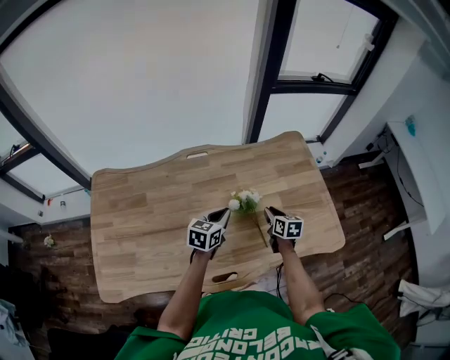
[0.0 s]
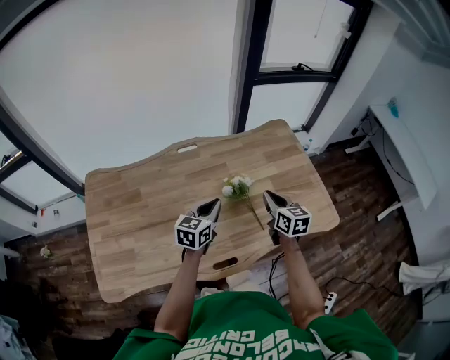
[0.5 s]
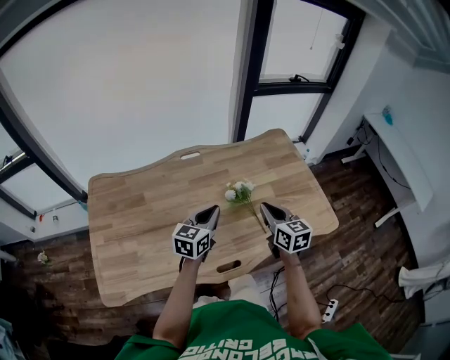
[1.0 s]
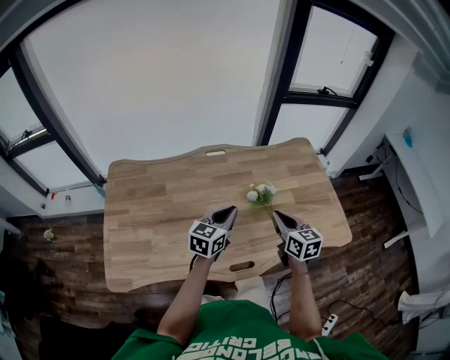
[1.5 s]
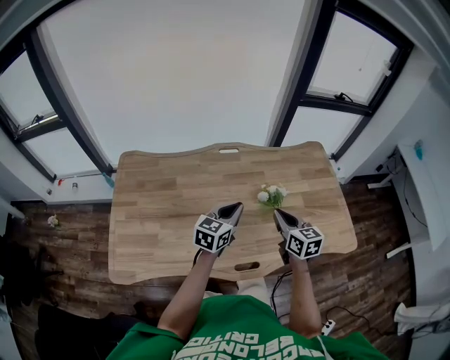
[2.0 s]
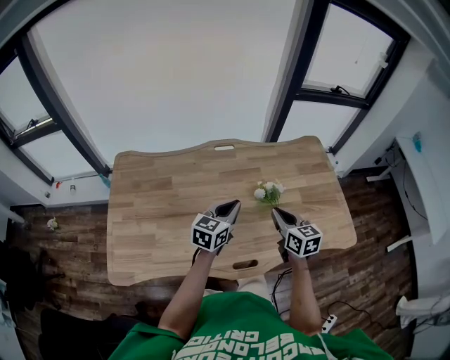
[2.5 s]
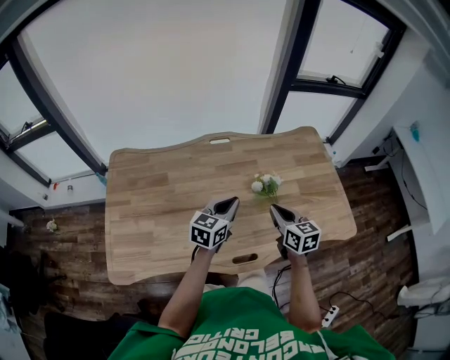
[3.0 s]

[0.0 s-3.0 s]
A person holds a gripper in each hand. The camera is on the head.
0.0 to 1.5 s: The left gripper heads backward, upward and to the left, covering about 15 cm; the right gripper shifts approximately 25 cm upward, backward and to the left, and swivels some 20 degrees.
1.5 to 3.0 s: There are only small adjustments of the grippers.

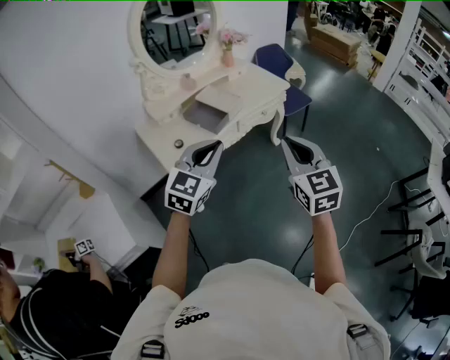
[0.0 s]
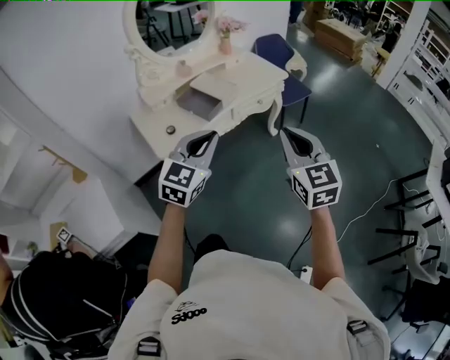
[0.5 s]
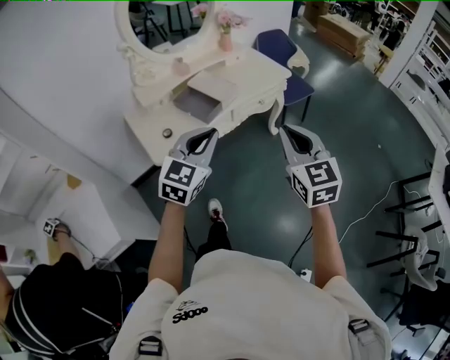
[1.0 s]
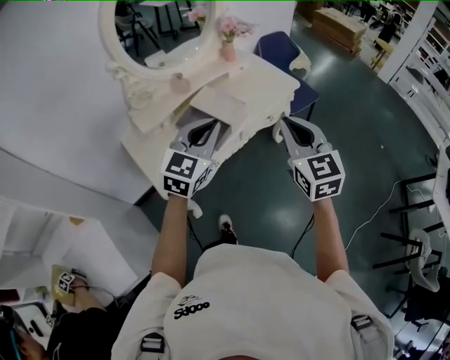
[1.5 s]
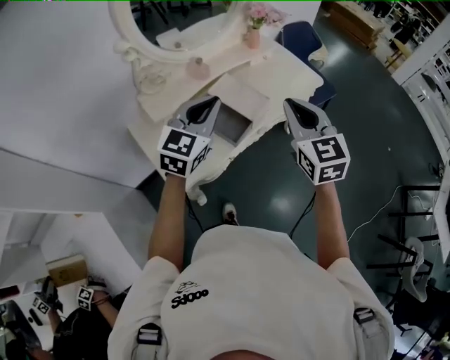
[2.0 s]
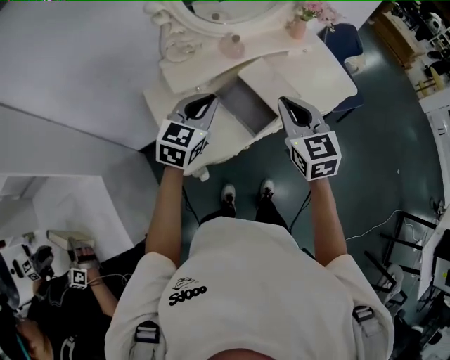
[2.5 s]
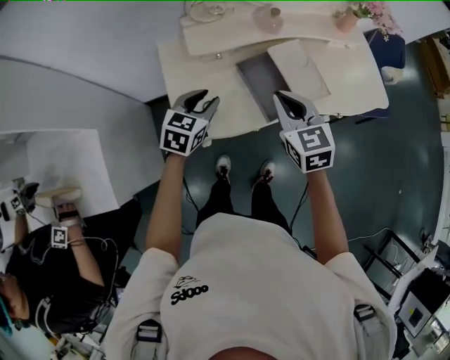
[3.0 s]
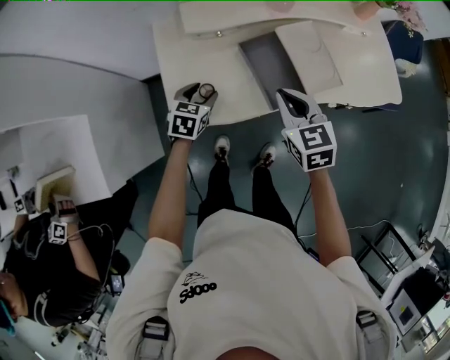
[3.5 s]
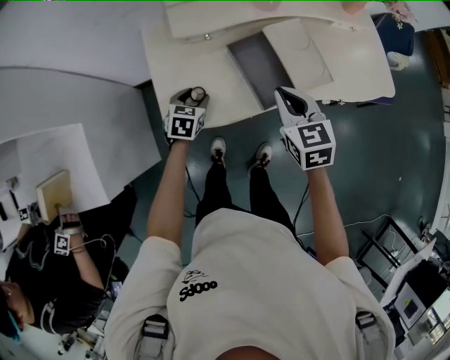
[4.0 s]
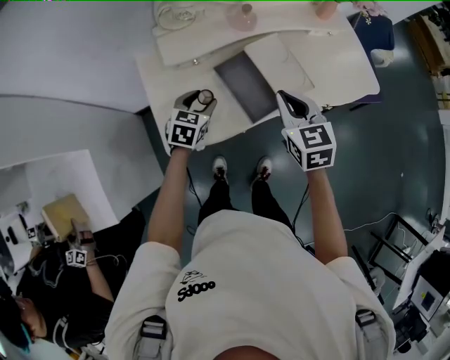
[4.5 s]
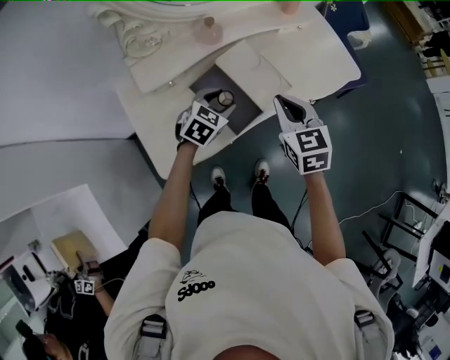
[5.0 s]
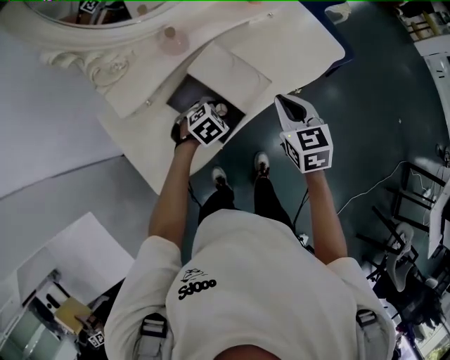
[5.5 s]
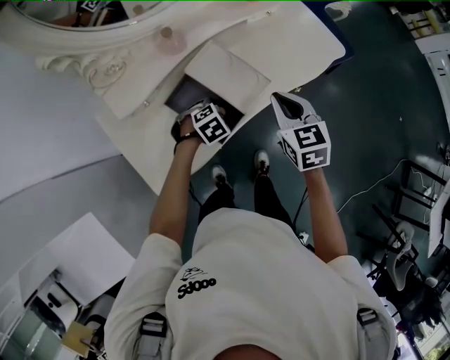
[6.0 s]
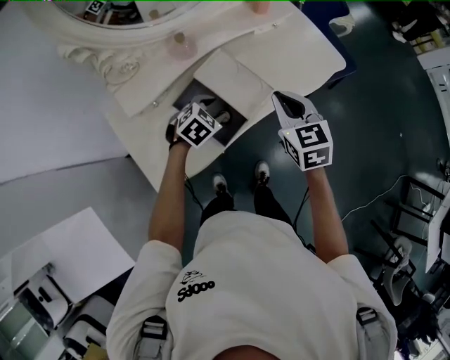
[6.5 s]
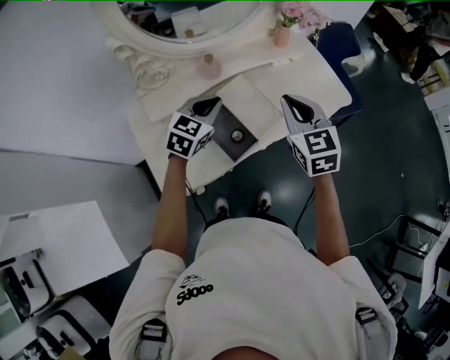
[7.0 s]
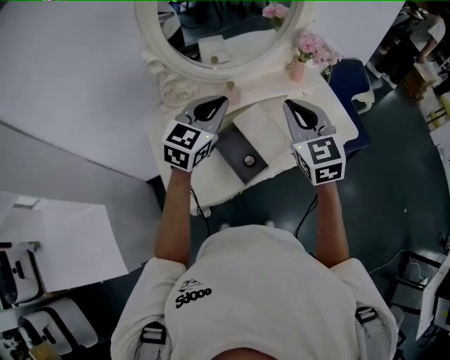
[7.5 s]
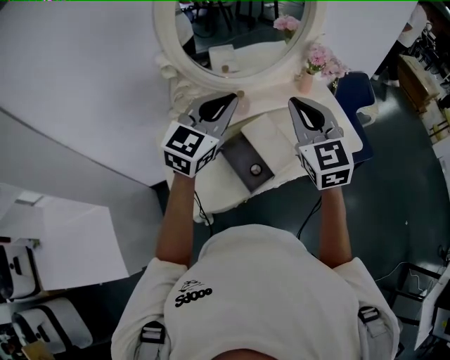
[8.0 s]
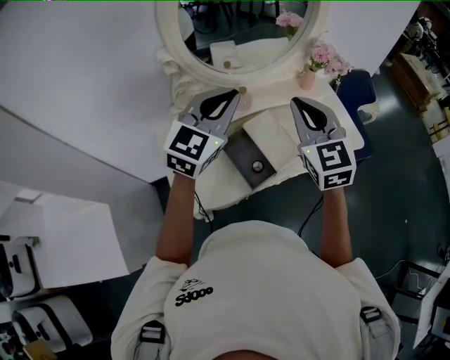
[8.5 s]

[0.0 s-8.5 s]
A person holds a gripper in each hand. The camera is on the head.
0.0 to 2.0 s: Both grippers travel together forward and to the left, some 35 cm.
2.0 to 4.0 s: The left gripper heads downward, covering some 35 cm, angles its fingers downward, by about 40 degrees, and opens. The right gripper travels downward by some 20 cm, and rotates roughly 40 degrees.
4.0 to 6.5 s: The left gripper swings up and down, some 10 cm each way, with 2 reversals, and rolls clockwise, seen from behind, by approximately 50 degrees, while the right gripper changes place by about 15 cm, and turns by about 20 degrees.
6.5 to 8.5 s: The left gripper is displaced upward by about 35 cm, tilts its fingers roughly 50 degrees upward, and closes up. Meanwhile the right gripper heads upward and to the left, covering about 20 cm, and turns by some 30 degrees.

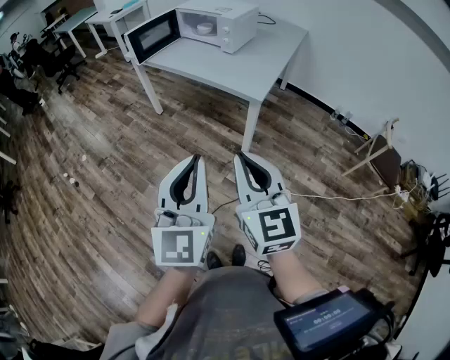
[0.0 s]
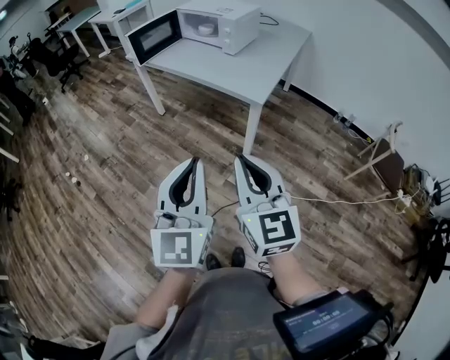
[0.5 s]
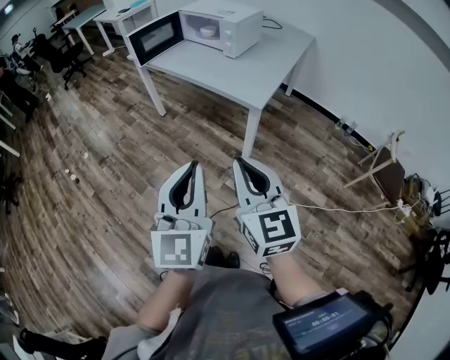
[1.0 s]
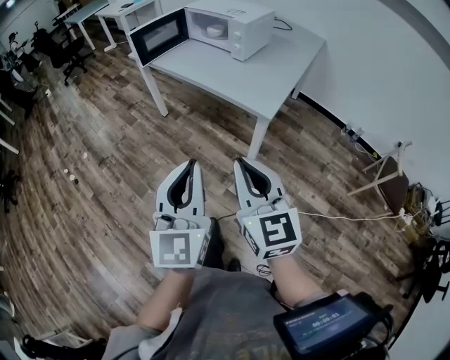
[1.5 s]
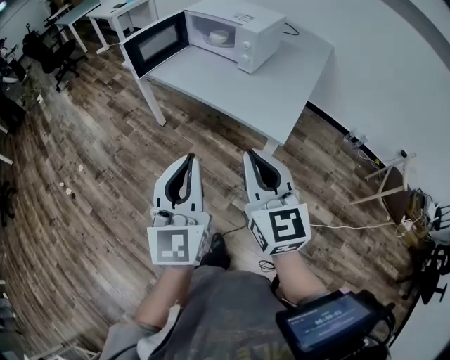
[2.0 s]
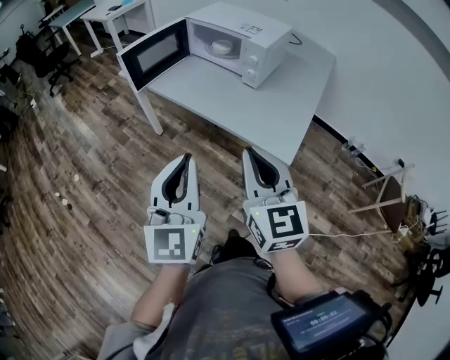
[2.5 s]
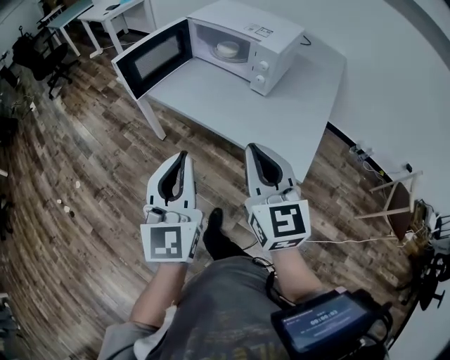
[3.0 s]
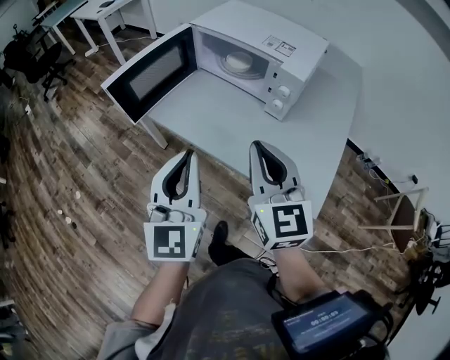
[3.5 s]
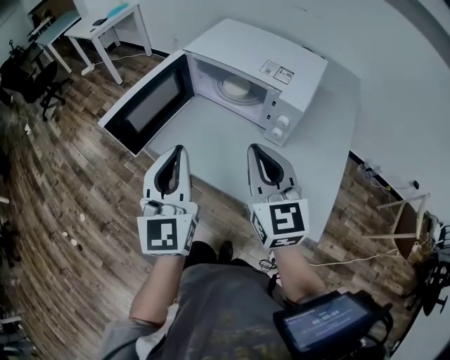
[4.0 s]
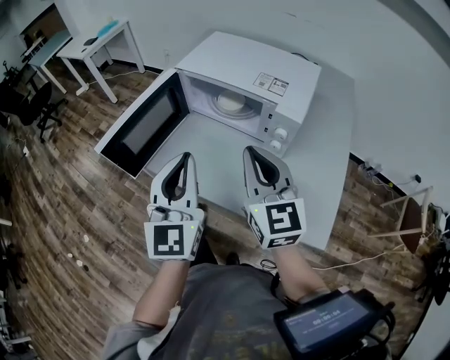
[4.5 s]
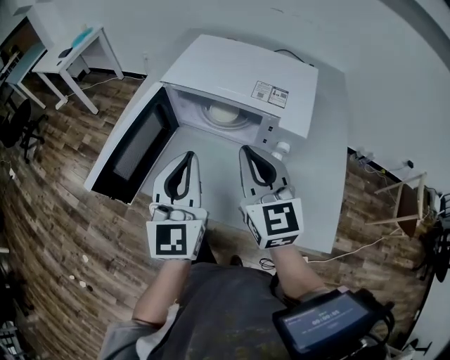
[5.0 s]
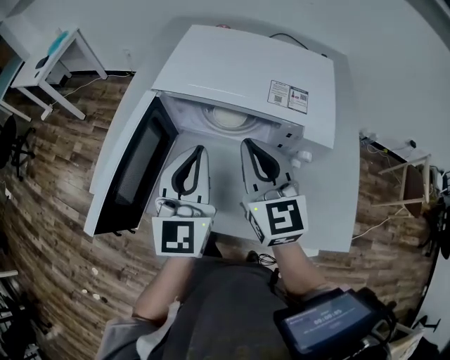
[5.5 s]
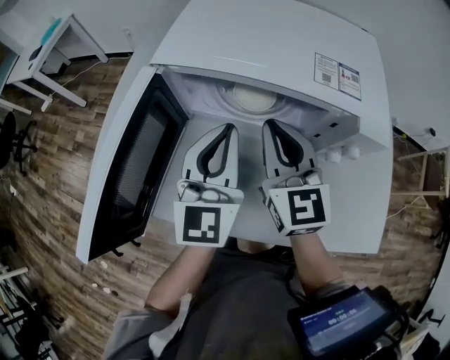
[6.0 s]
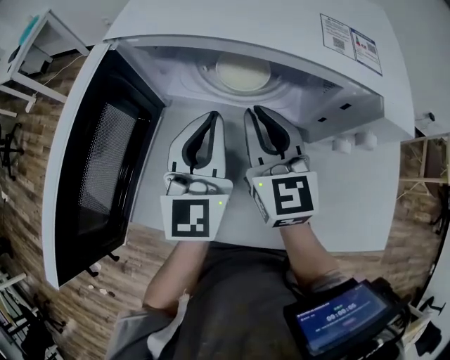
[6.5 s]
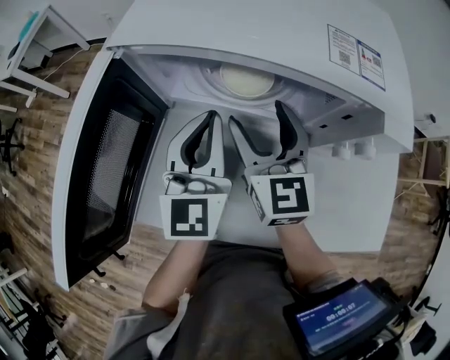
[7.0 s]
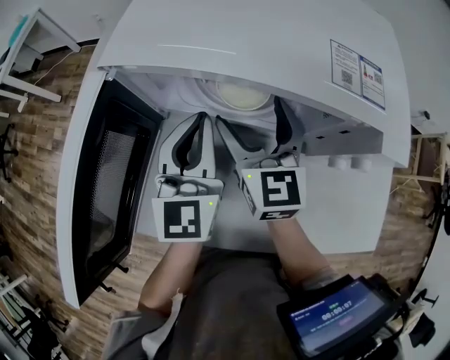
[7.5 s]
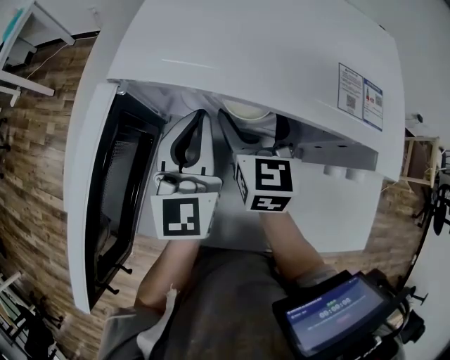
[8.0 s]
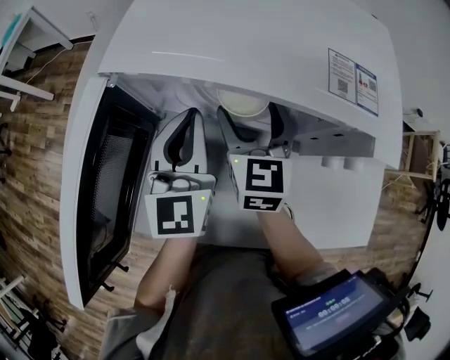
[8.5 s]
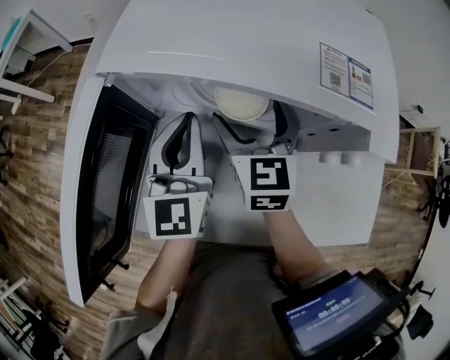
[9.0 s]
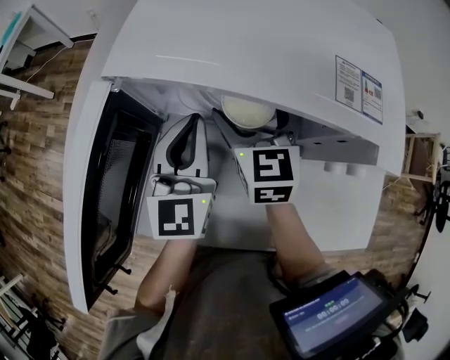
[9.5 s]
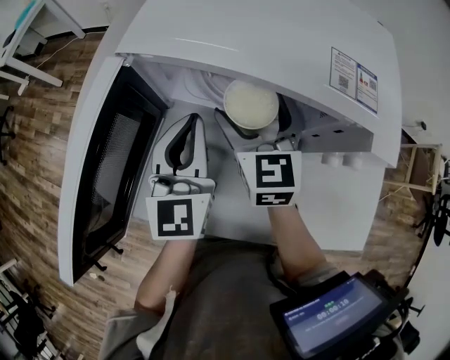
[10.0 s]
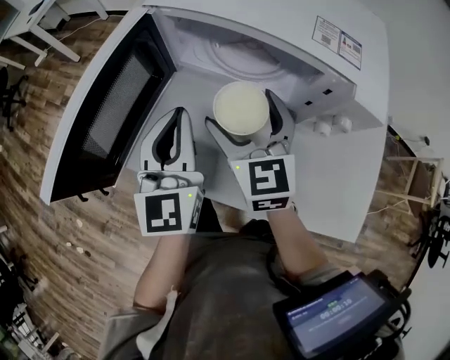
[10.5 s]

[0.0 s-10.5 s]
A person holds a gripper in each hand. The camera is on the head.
0.0 to 2.0 s: Both grippers move forward, about 25 cm.
2.0 to 4.0 s: The pair of grippers is taken forward, roughly 40 cm.
4.0 to 6.5 s: Both grippers travel together forward and downward, approximately 30 cm. The left gripper changes its angle by approximately 30 degrees.
6.5 to 8.5 s: The left gripper shifts by some 5 cm, while the right gripper shifts some 5 cm forward, and opens up.
8.5 to 10.5 s: The two grippers go some 10 cm backward. The right gripper turns by some 20 degrees.

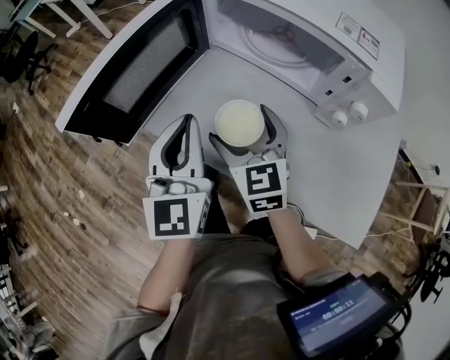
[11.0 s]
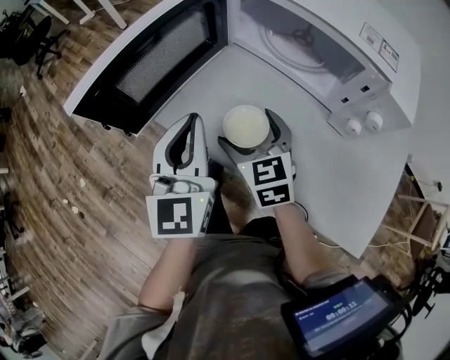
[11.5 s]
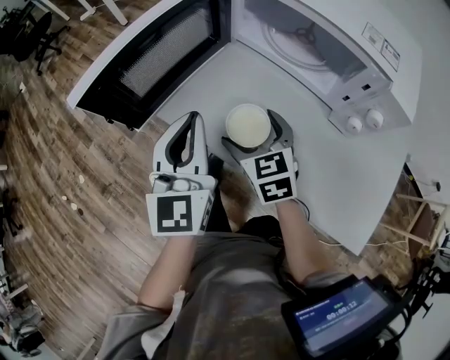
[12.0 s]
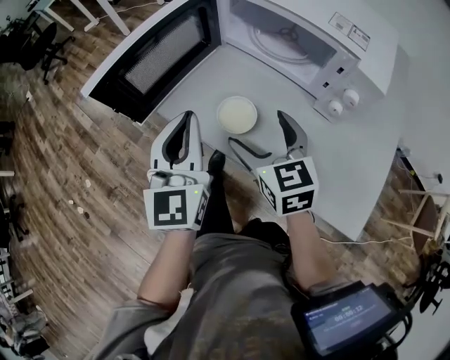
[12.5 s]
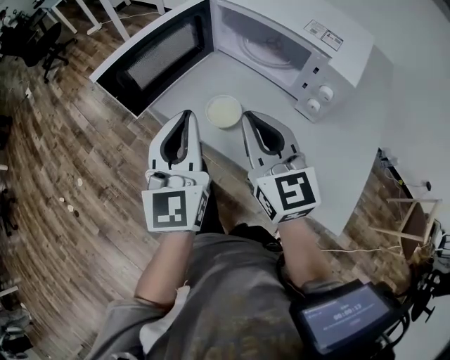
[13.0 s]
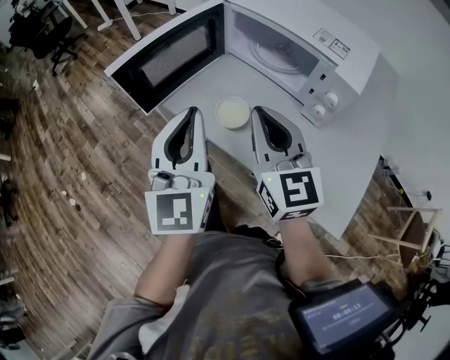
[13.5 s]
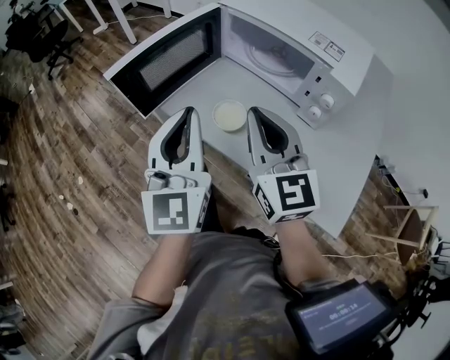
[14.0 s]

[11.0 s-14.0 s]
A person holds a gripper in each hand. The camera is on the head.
11.0 to 12.5 s: The left gripper changes place by approximately 5 cm. The right gripper moves backward, roughly 5 cm.
12.5 to 14.0 s: The left gripper is displaced upward and backward by about 10 cm. Meanwhile the right gripper goes about 15 cm upward, rotates approximately 20 degrees, and closes its fingers.

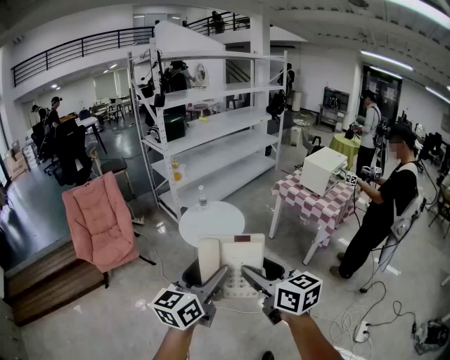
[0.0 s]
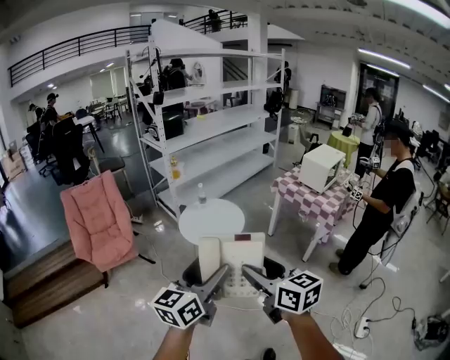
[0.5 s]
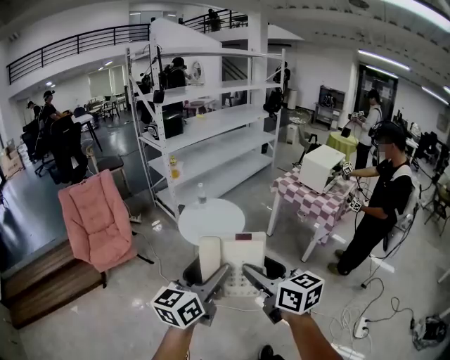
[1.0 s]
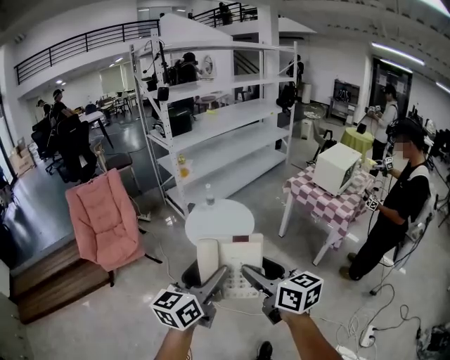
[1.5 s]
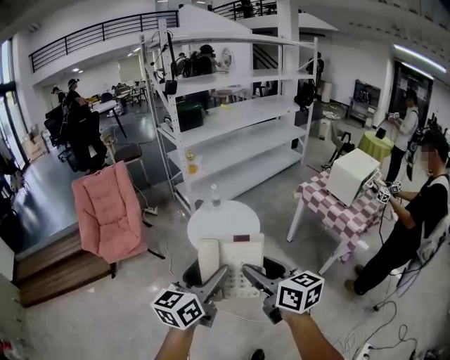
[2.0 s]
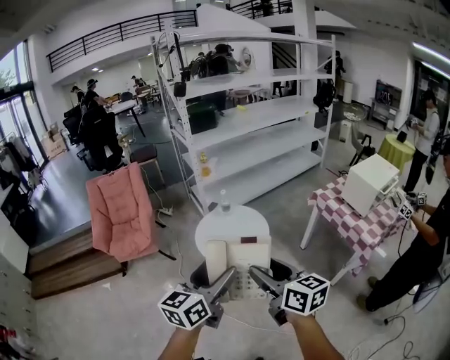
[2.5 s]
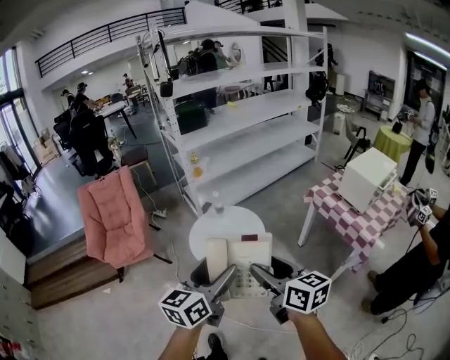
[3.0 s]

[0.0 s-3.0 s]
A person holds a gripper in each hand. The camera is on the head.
0.0 to 1.5 s: The two grippers go roughly 10 cm forward.
1.5 to 3.0 s: The two grippers go roughly 25 cm forward and to the right.
